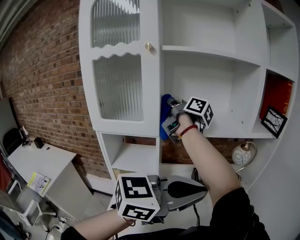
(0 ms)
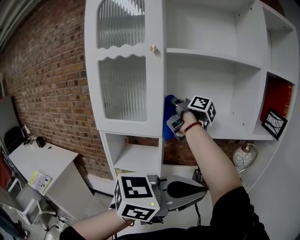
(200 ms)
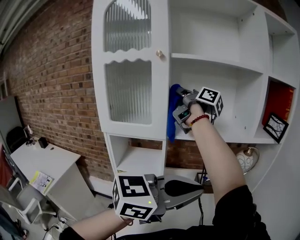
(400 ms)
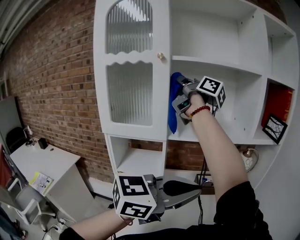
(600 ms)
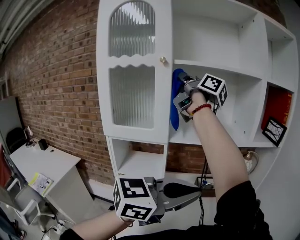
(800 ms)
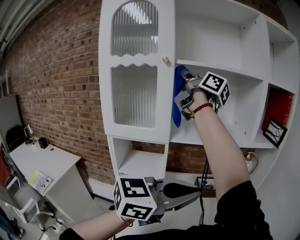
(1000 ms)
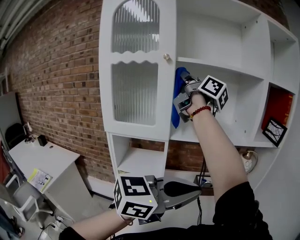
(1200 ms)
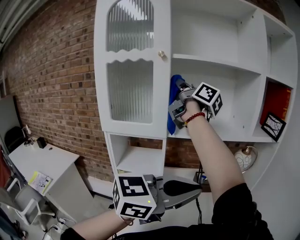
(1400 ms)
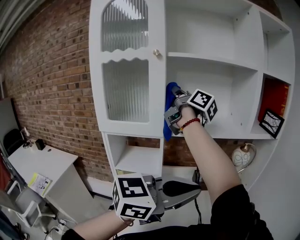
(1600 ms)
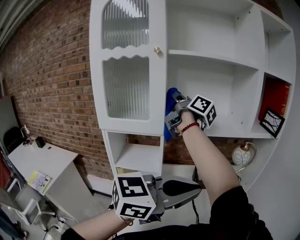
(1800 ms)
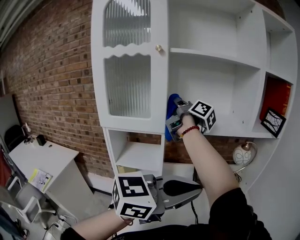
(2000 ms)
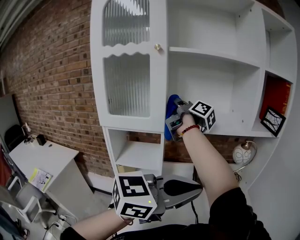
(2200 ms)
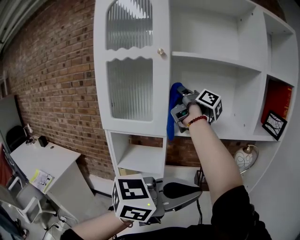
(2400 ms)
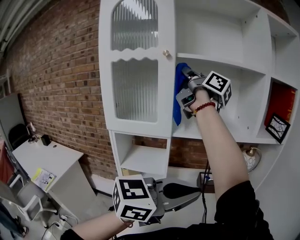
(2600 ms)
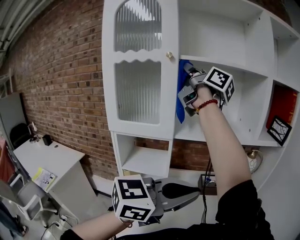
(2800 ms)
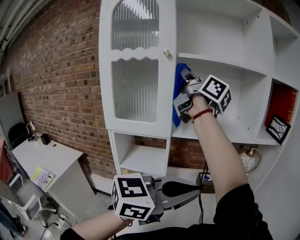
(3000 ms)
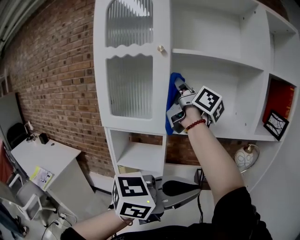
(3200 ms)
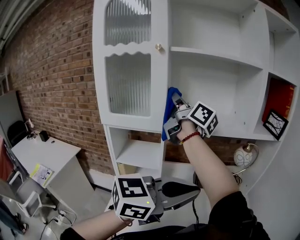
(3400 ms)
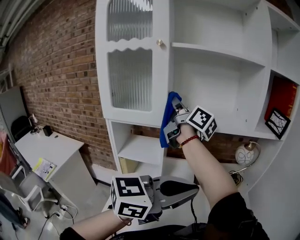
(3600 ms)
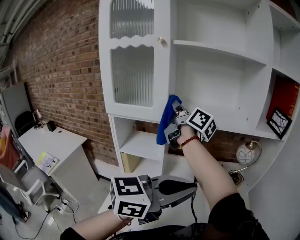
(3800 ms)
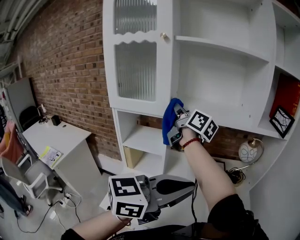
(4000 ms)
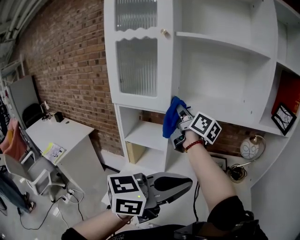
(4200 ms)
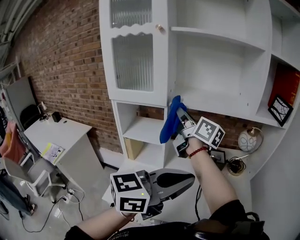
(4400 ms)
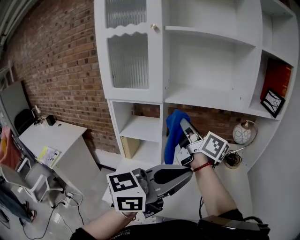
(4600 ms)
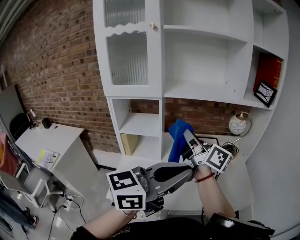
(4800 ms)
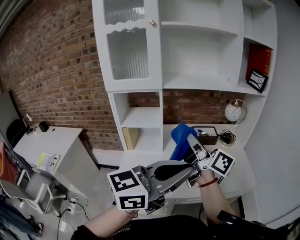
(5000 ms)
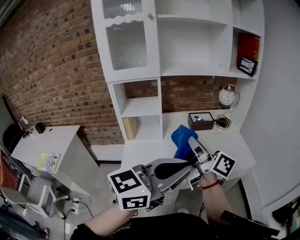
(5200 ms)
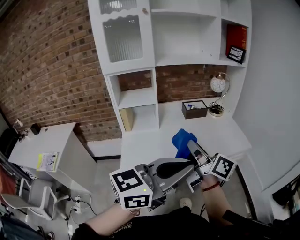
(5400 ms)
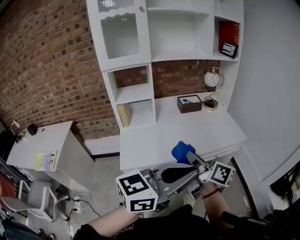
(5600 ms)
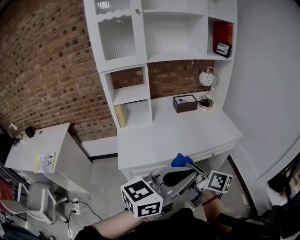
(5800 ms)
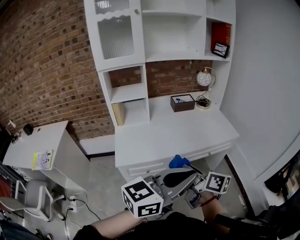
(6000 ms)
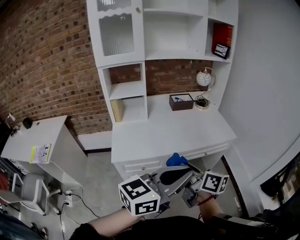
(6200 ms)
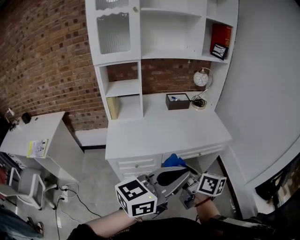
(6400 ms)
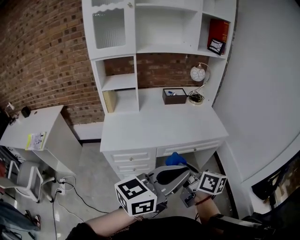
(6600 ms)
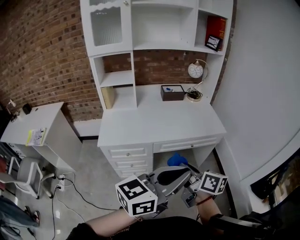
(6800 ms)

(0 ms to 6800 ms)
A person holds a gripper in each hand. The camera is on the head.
0 ms - 1400 ms: The right gripper moves upward, about 10 cm.
1400 ms - 2800 ms: The right gripper shifts approximately 5 cm upward.
2800 ms - 4000 ms: The left gripper shifts by approximately 5 cm, while the right gripper shifts about 25 cm downward.
4000 ms - 5400 ms: The right gripper heads backward and downward, covering approximately 50 cm, while the left gripper is displaced backward by about 30 cm.
5400 ms - 6800 ms: The right gripper shifts roughly 25 cm to the right, backward and downward, and swivels some 20 degrees; the left gripper moves to the right and backward, some 20 cm.

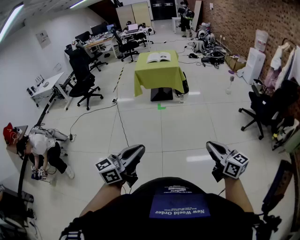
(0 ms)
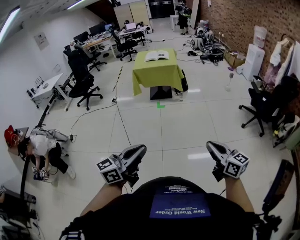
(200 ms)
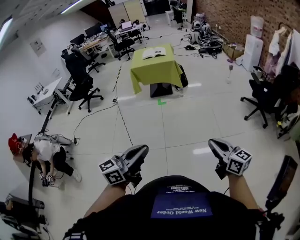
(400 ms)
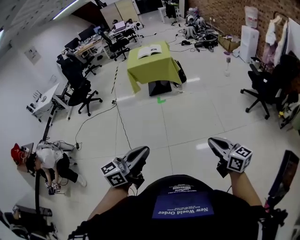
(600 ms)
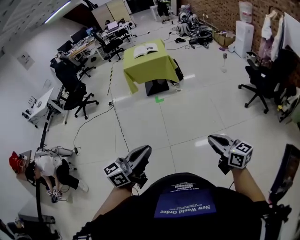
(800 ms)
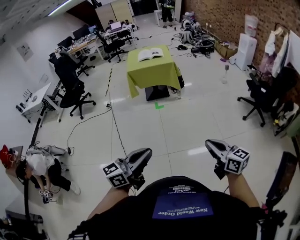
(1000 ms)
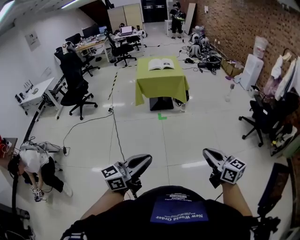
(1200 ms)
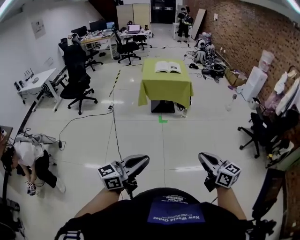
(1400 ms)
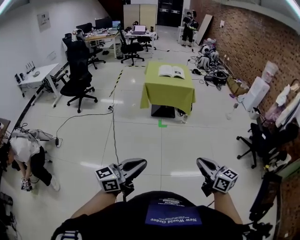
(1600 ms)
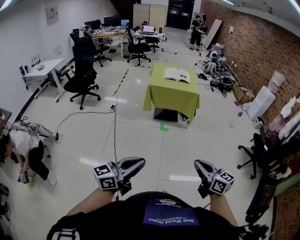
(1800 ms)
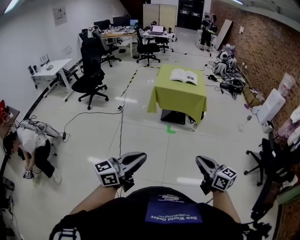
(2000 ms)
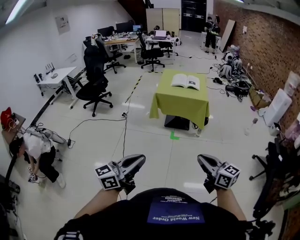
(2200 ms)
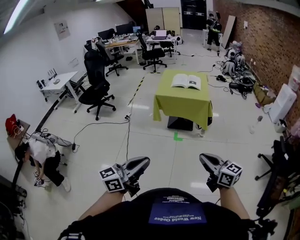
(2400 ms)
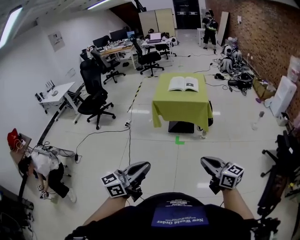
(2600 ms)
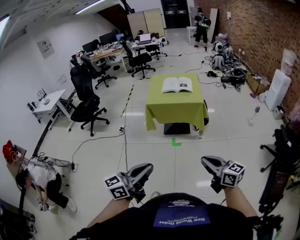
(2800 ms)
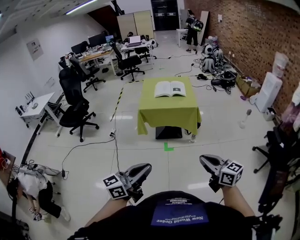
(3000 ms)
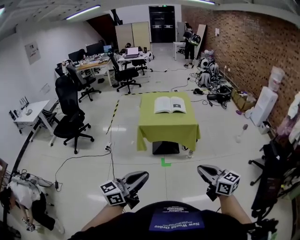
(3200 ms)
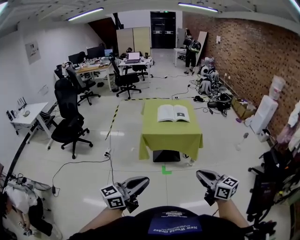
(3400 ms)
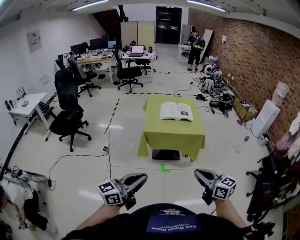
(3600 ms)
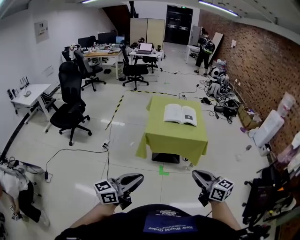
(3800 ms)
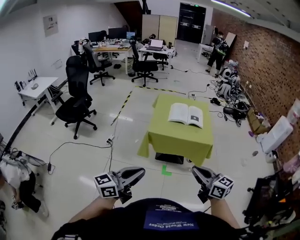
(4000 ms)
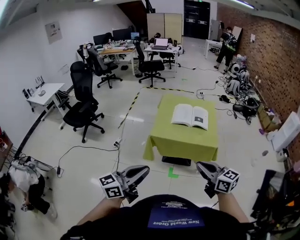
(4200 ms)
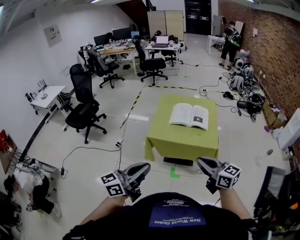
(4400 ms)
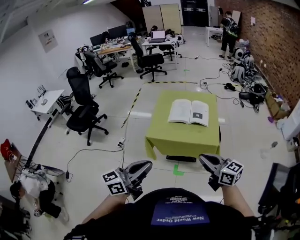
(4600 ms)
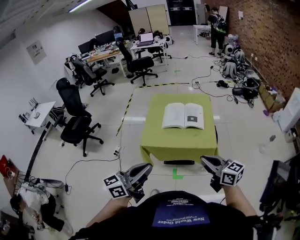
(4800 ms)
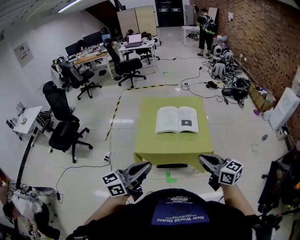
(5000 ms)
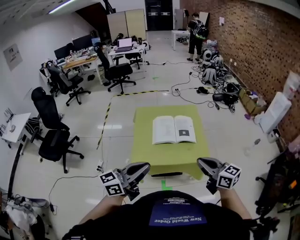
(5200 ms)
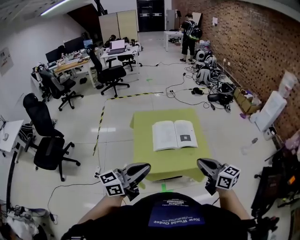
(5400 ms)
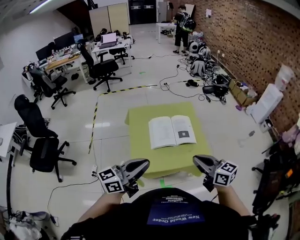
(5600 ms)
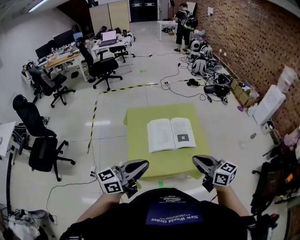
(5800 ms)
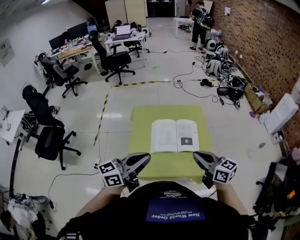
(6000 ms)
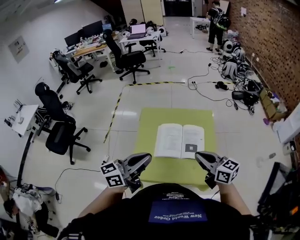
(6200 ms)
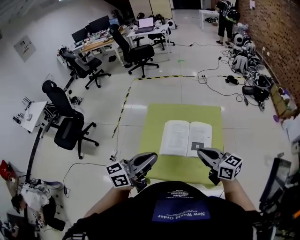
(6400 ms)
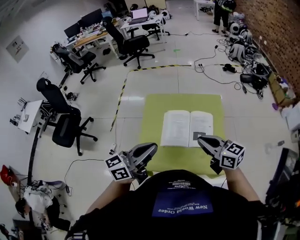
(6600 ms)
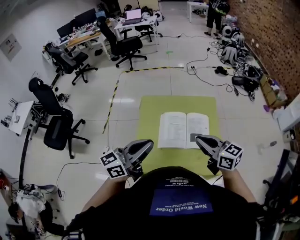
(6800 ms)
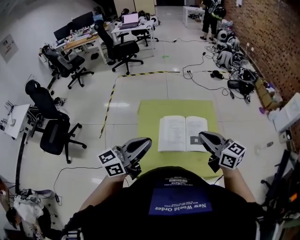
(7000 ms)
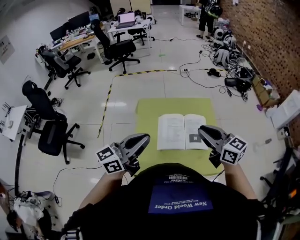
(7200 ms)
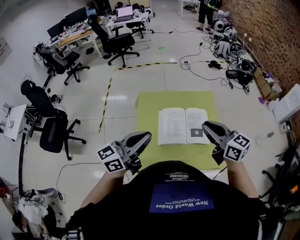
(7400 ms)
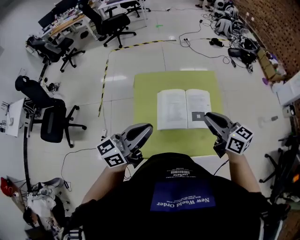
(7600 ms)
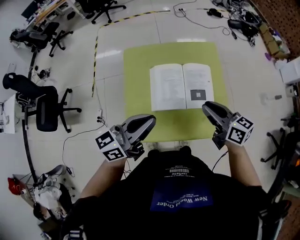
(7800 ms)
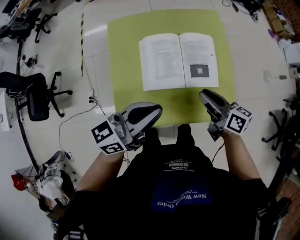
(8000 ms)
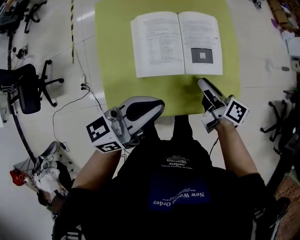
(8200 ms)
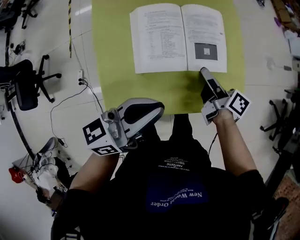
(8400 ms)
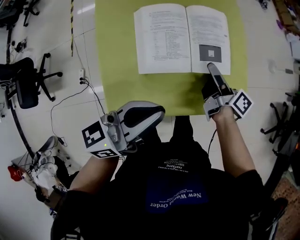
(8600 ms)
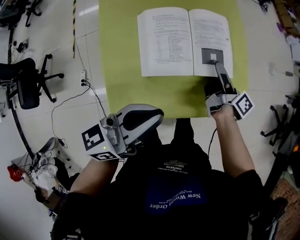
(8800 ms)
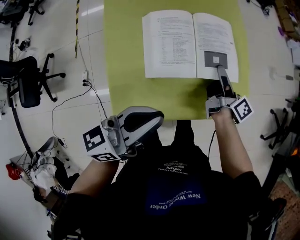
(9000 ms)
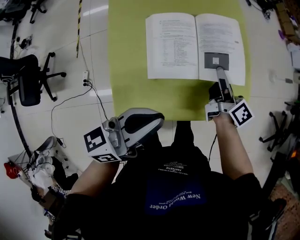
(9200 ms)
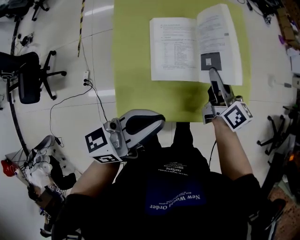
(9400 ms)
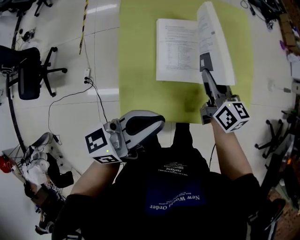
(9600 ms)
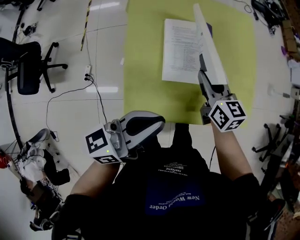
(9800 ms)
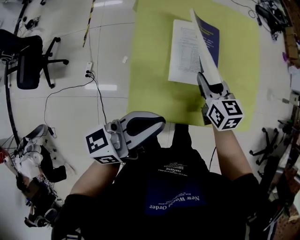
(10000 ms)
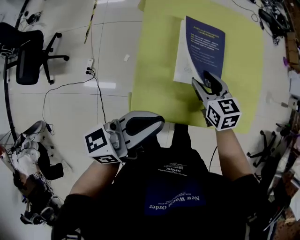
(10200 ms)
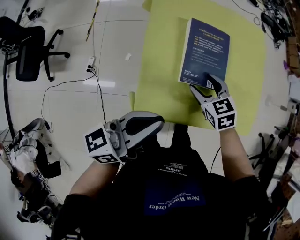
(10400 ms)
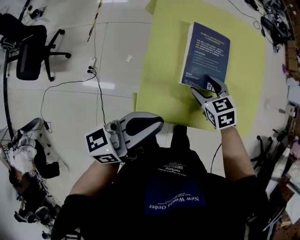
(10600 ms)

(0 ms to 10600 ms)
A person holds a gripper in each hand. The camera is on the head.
0 ms - 1600 ms: The grippers both shift to the left and forward by some 35 cm.
1600 ms - 3000 ms: The two grippers go roughly 35 cm forward.
3000 ms - 4600 ms: The grippers both shift forward by approximately 40 cm.
4600 ms - 6000 ms: Both grippers move forward, roughly 35 cm.
6000 ms - 7600 ms: Both grippers move forward, roughly 10 cm.
7600 ms - 9000 ms: The right gripper moves downward, some 25 cm, twists some 50 degrees clockwise, seen from behind, and opens, then closes again. The left gripper travels downward by roughly 15 cm.
9000 ms - 10600 ms: The right gripper goes some 20 cm to the left, twists about 80 degrees counterclockwise, seen from behind, and opens up. Meanwhile the left gripper shifts about 10 cm to the left.

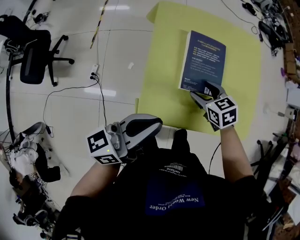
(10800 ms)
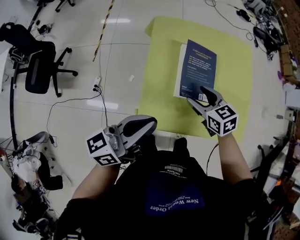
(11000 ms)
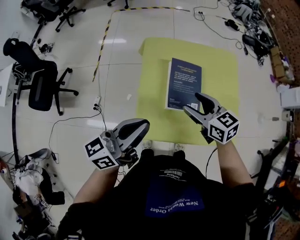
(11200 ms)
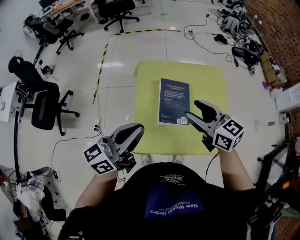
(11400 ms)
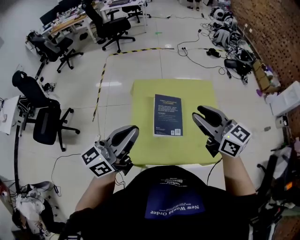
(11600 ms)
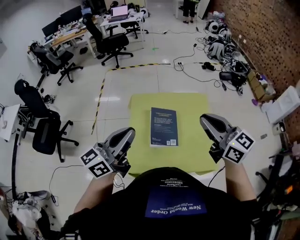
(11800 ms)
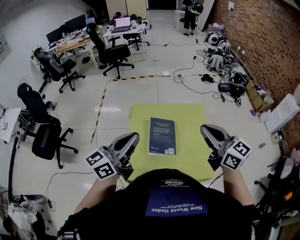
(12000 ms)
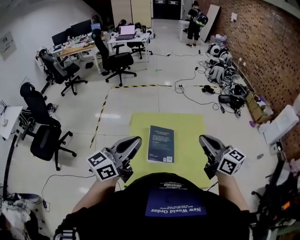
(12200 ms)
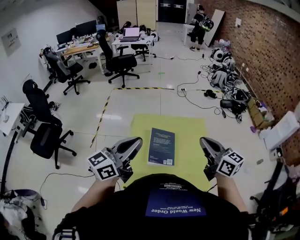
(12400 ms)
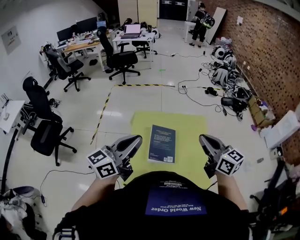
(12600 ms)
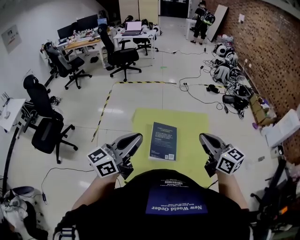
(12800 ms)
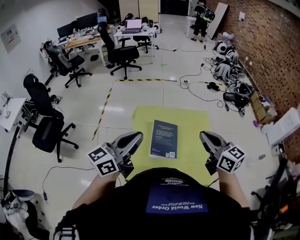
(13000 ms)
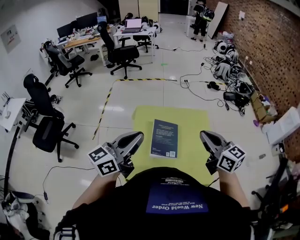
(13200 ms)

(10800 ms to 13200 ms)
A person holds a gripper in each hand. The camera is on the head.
10800 ms - 12000 ms: The left gripper goes roughly 20 cm upward, and rotates about 20 degrees, while the right gripper heads upward, covering about 40 cm, points its fingers approximately 50 degrees further upward, and closes its fingers.
12000 ms - 13200 ms: The grippers move only a little.

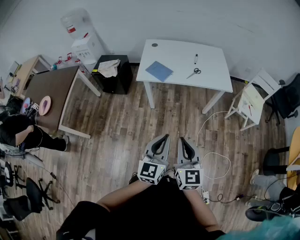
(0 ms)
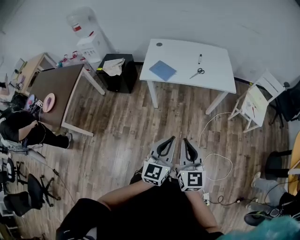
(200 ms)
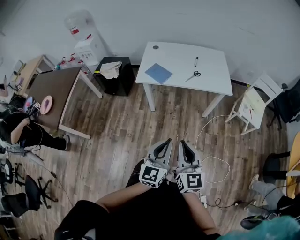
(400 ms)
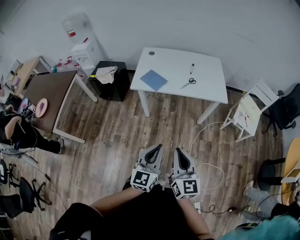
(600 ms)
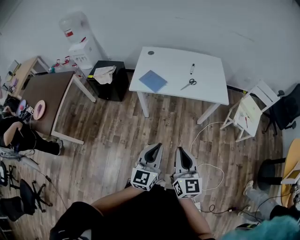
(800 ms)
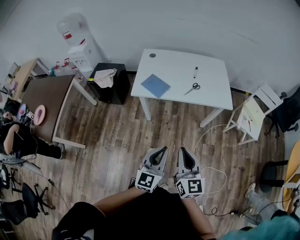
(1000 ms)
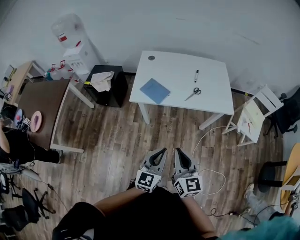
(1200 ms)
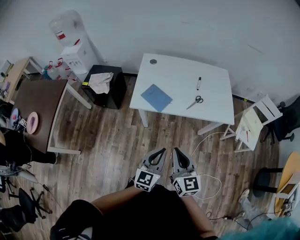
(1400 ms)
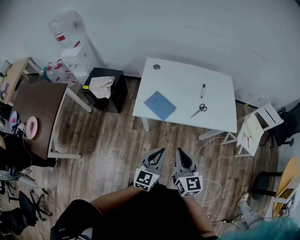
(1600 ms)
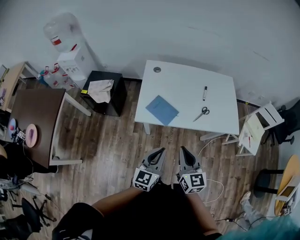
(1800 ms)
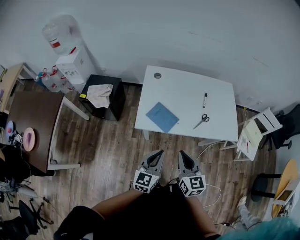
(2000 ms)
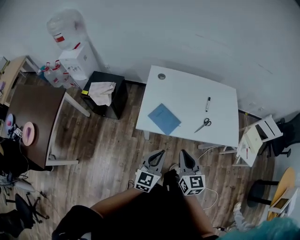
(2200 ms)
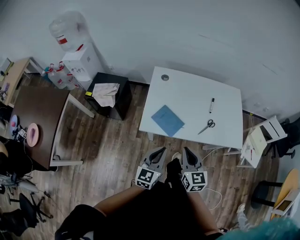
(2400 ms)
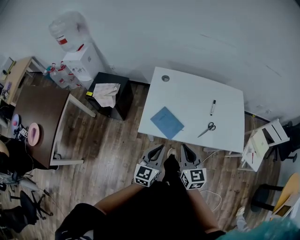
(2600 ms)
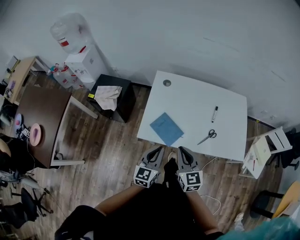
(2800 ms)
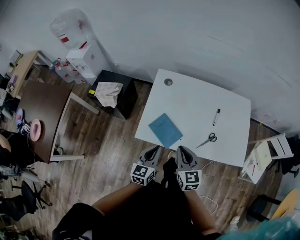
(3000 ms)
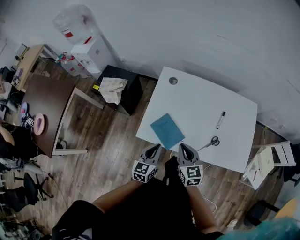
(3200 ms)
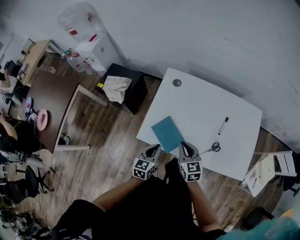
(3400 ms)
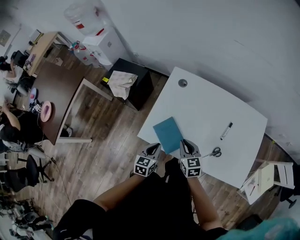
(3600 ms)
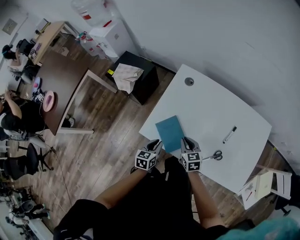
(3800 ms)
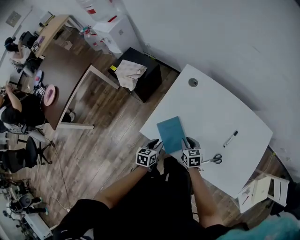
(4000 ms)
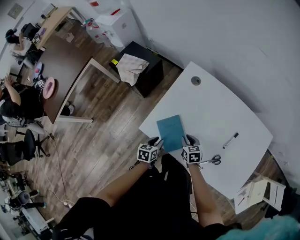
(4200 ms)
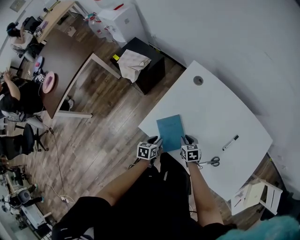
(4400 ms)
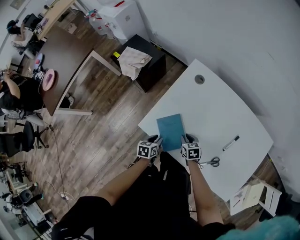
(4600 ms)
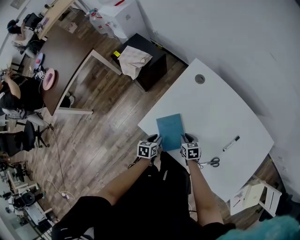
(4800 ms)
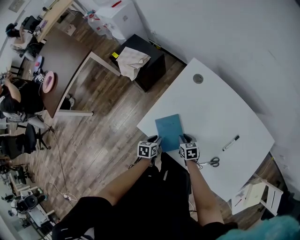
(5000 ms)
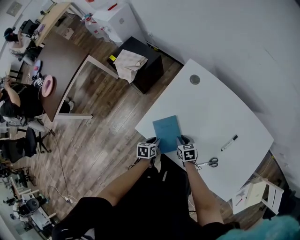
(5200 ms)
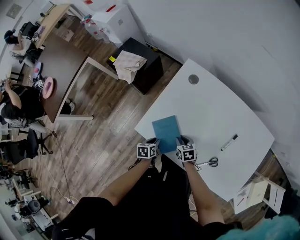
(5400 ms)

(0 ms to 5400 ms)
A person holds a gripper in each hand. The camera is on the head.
0 ms - 1400 ms: Both grippers travel together forward, about 25 cm.
1400 ms - 2800 ms: The two grippers go some 25 cm forward.
2800 ms - 4000 ms: The grippers both shift downward and forward by some 25 cm. The left gripper rotates roughly 40 degrees, and opens up; the right gripper turns by about 40 degrees.
4000 ms - 5400 ms: Both grippers move downward, approximately 10 cm. The left gripper turns by approximately 20 degrees.
